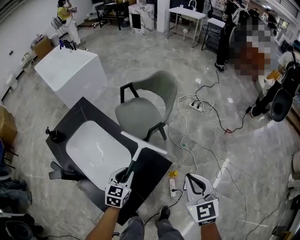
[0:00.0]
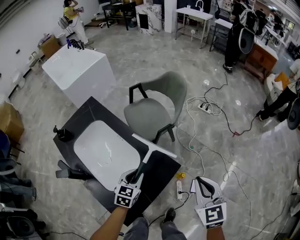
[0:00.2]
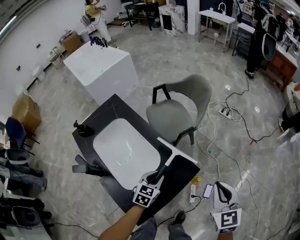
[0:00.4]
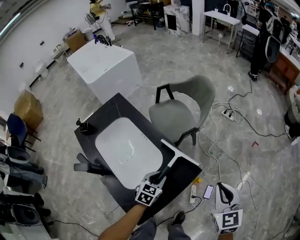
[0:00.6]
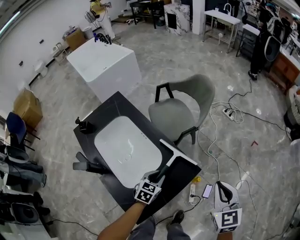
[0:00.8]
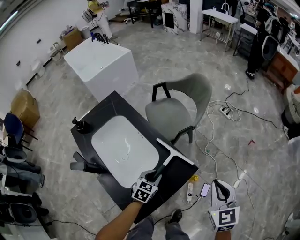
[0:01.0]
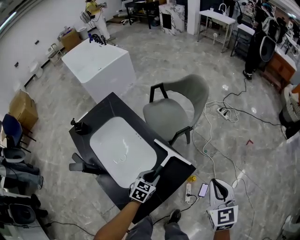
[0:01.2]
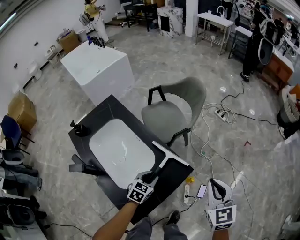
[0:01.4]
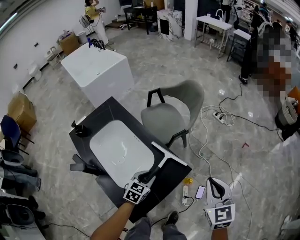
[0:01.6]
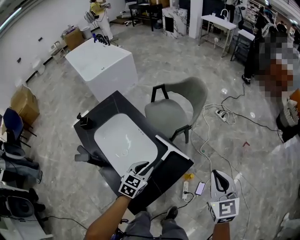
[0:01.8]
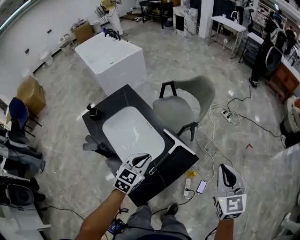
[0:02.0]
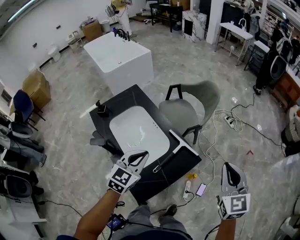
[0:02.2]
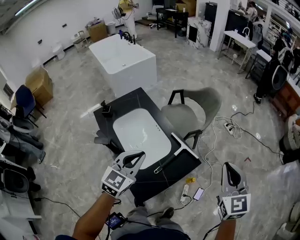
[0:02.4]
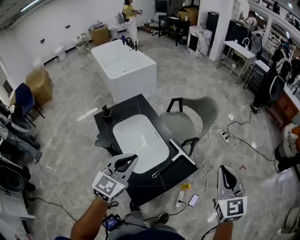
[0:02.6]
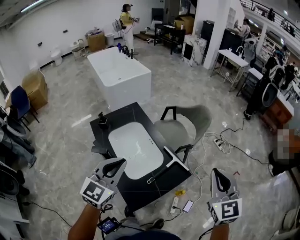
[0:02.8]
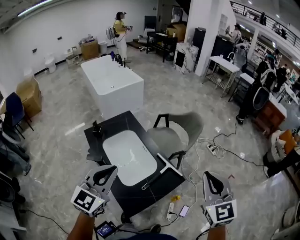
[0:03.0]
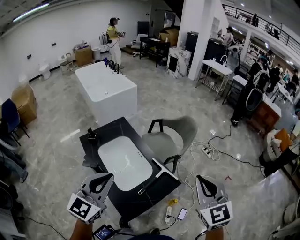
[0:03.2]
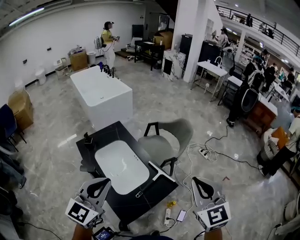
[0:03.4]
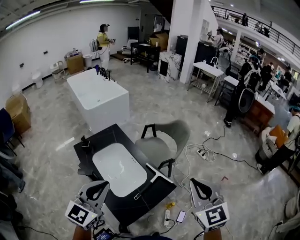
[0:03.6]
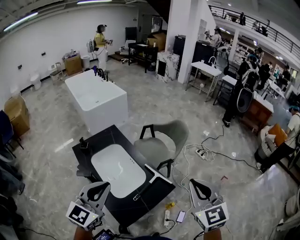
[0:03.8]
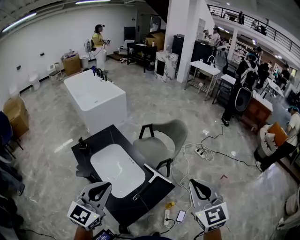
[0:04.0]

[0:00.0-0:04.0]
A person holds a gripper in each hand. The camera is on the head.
1.4 to 2.6 s: The right gripper shifts approximately 20 cm upward. The left gripper moves upward, approximately 35 cm, swivels approximately 30 degrees, and closes up.
2.6 to 4.0 s: Both grippers move upward, roughly 10 cm.

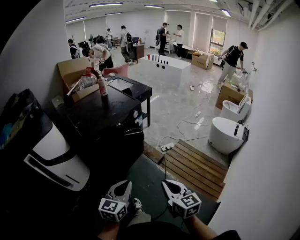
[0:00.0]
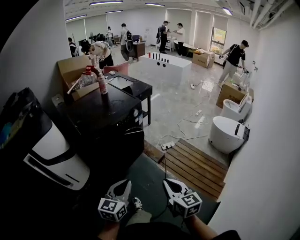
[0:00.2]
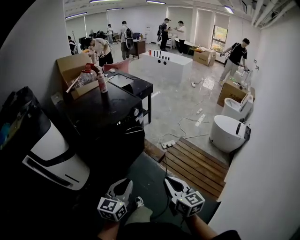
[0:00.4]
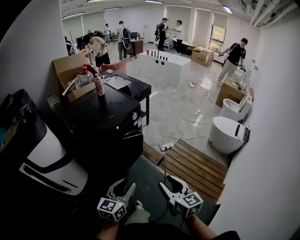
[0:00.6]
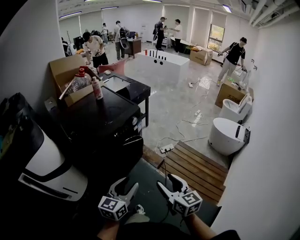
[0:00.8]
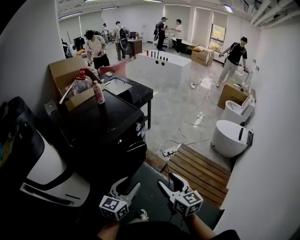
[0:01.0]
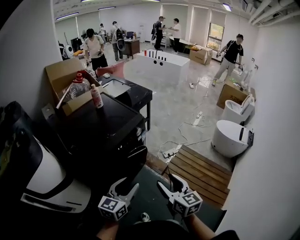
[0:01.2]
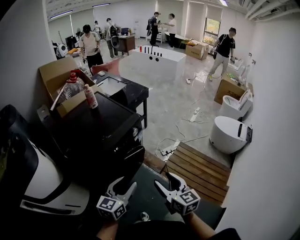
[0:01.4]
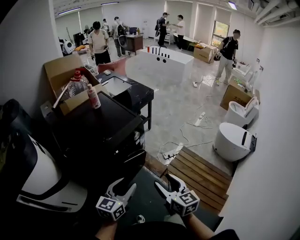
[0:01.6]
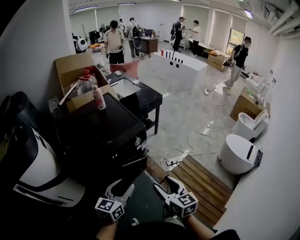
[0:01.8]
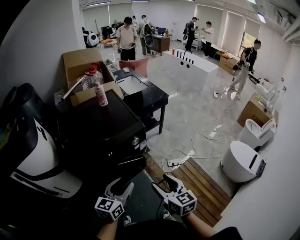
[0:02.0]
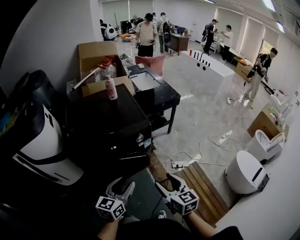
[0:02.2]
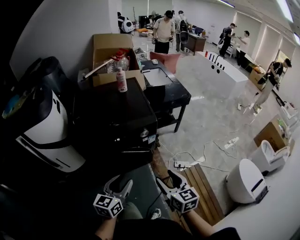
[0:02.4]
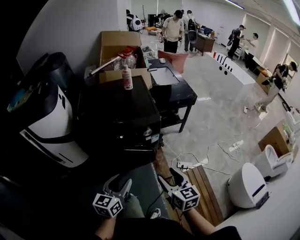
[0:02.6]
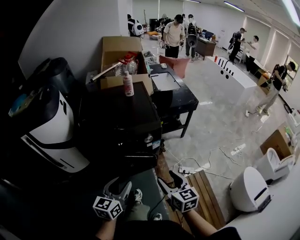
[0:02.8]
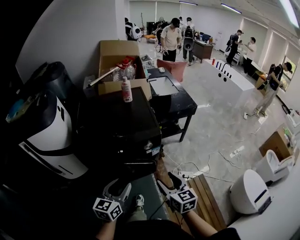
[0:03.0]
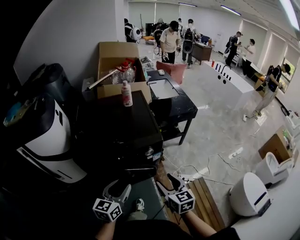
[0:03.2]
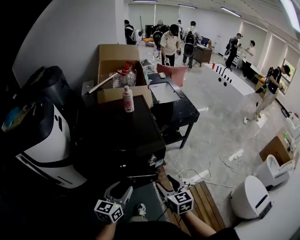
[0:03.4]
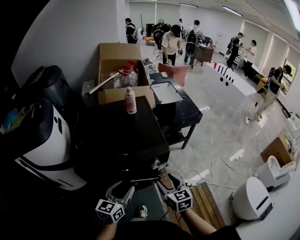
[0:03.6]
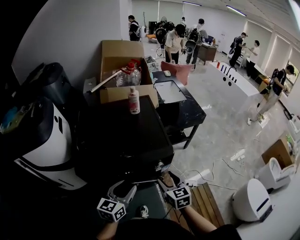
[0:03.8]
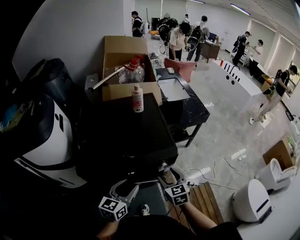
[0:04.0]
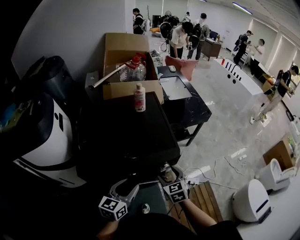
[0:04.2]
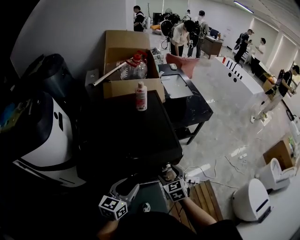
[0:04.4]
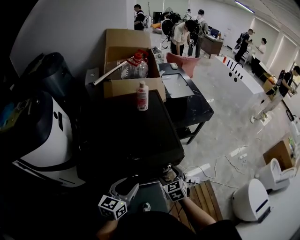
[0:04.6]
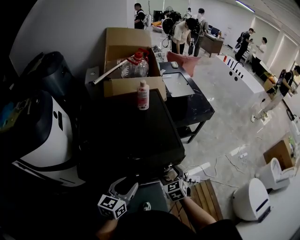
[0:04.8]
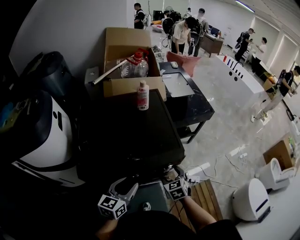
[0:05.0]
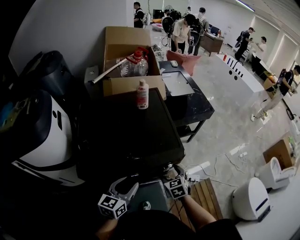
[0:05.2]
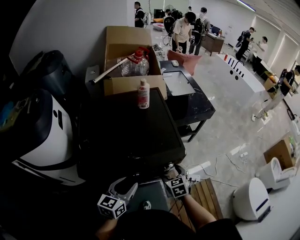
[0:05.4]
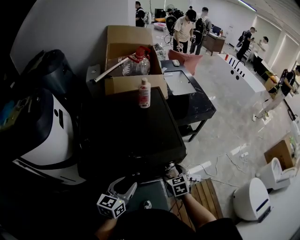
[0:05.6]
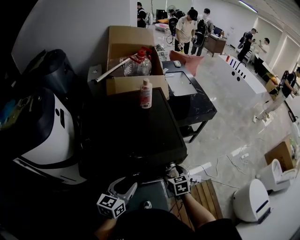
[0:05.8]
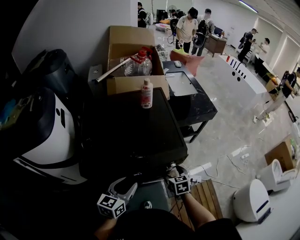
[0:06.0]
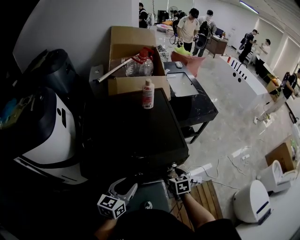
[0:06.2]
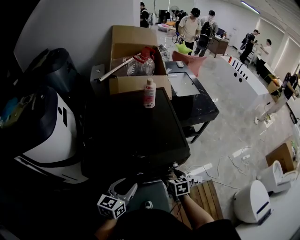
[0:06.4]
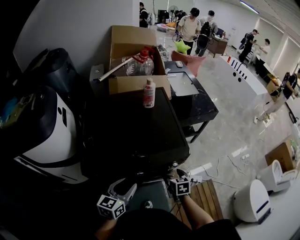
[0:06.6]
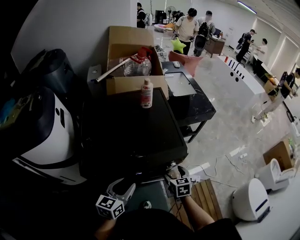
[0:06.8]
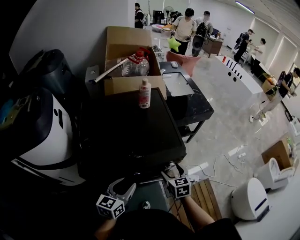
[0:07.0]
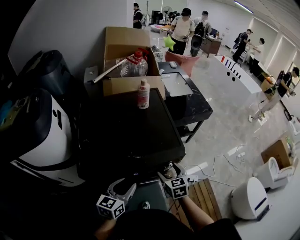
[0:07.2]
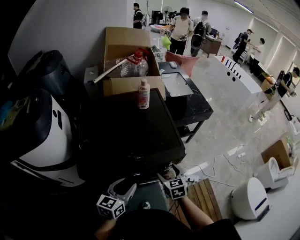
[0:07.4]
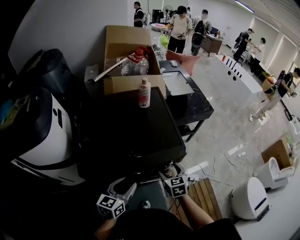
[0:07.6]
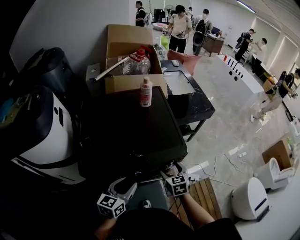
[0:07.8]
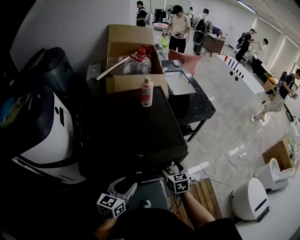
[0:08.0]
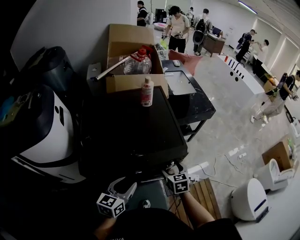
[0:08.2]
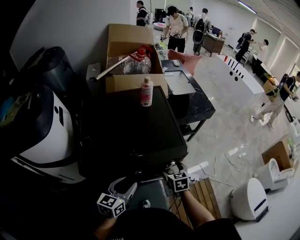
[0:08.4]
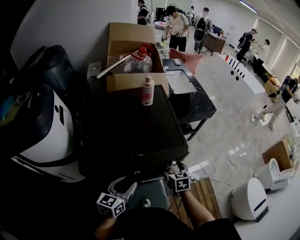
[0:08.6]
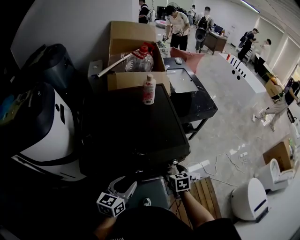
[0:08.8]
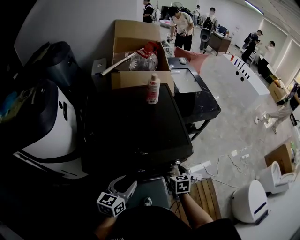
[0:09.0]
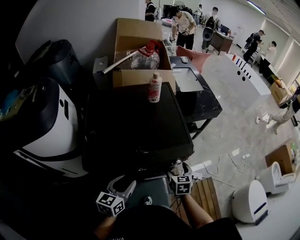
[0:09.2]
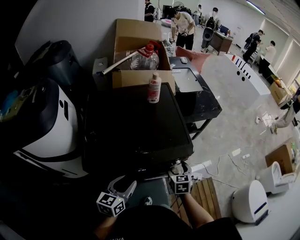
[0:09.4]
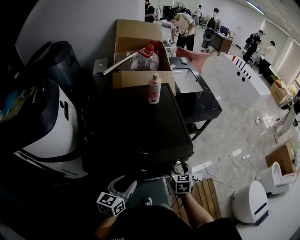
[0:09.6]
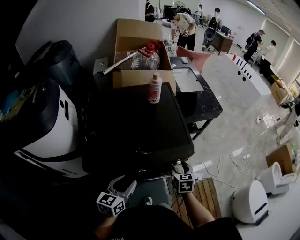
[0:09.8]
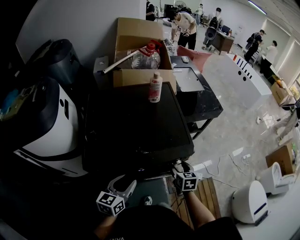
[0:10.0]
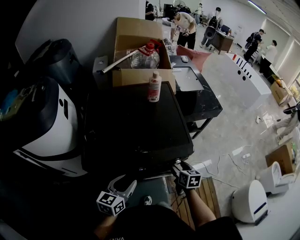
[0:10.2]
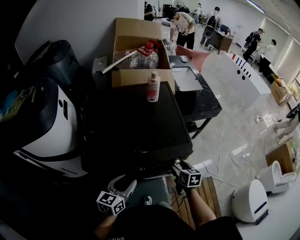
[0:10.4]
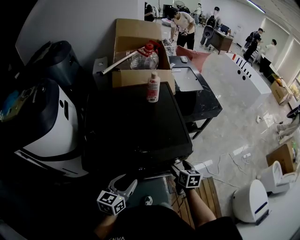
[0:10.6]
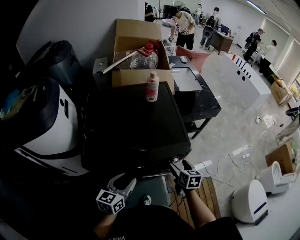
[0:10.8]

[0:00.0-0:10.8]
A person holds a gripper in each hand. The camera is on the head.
0.0 to 1.6 s: Both grippers travel together forward, roughly 30 cm. The right gripper opens its fingers. Meanwhile the left gripper opens its fingers.
1.6 to 3.0 s: The left gripper ends up about 10 cm from where it was, and swivels approximately 40 degrees. Meanwhile the right gripper moves approximately 20 cm, and turns by approximately 30 degrees.
3.0 to 4.6 s: The right gripper heads forward, downward and to the left, covering about 30 cm, and changes its angle by approximately 30 degrees. Meanwhile the left gripper goes about 20 cm forward.
4.6 to 6.2 s: The right gripper moves downward, some 5 cm, and rotates about 20 degrees.
6.2 to 7.8 s: The right gripper is displaced upward by about 5 cm.
7.8 to 9.2 s: There are only small adjustments of the grippers.
9.2 to 10.8 s: The grippers make only small movements.

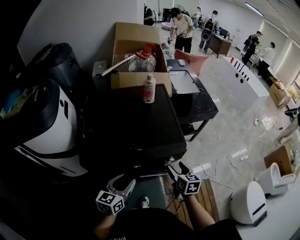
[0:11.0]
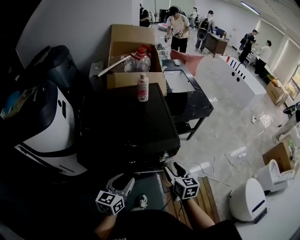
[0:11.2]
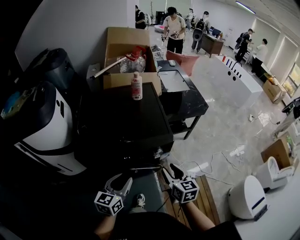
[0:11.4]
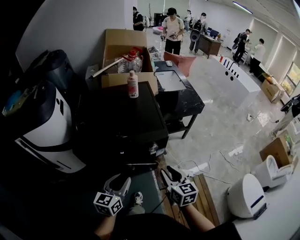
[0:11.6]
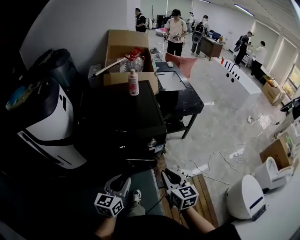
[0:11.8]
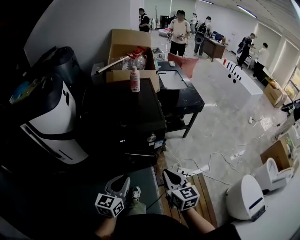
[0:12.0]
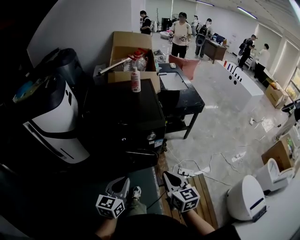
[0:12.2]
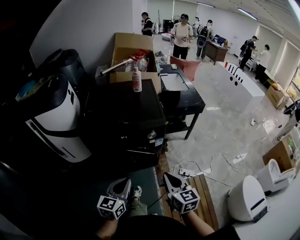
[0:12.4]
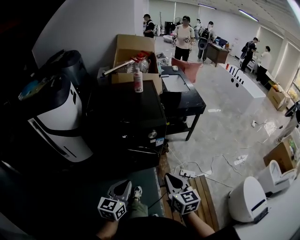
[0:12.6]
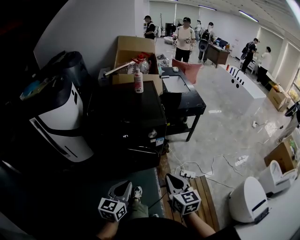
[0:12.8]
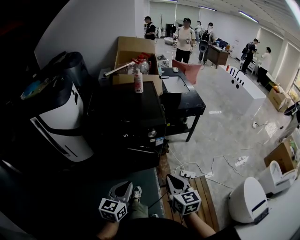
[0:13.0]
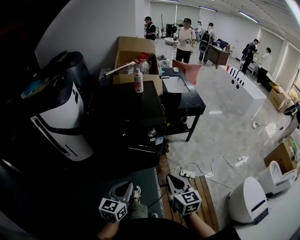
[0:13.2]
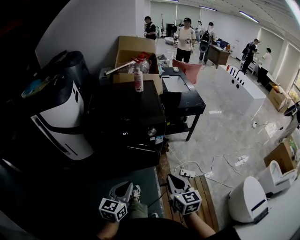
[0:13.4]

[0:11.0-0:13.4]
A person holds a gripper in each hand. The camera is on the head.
11.0 to 12.2 s: The right gripper goes some 30 cm backward and upward, and closes its fingers; the left gripper shifts approximately 25 cm backward and to the right, and closes its fingers.
12.2 to 13.4 s: Both grippers move backward, approximately 5 cm.

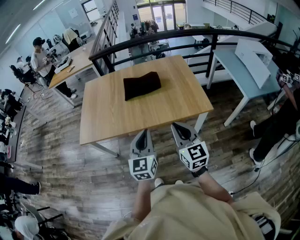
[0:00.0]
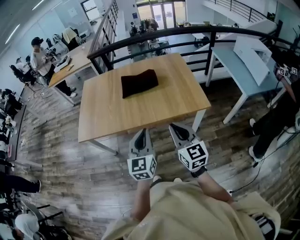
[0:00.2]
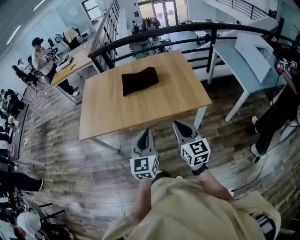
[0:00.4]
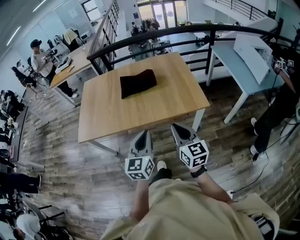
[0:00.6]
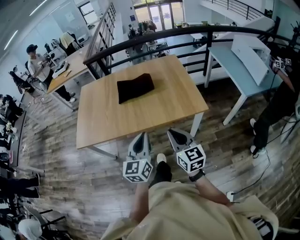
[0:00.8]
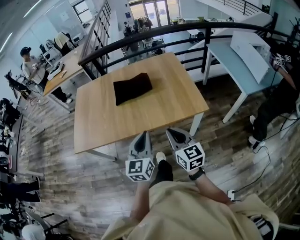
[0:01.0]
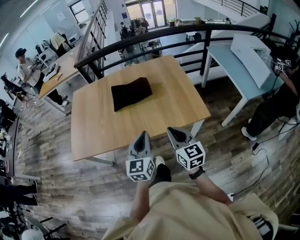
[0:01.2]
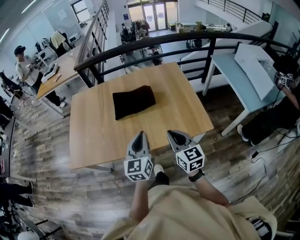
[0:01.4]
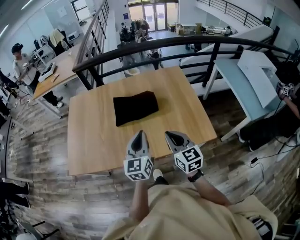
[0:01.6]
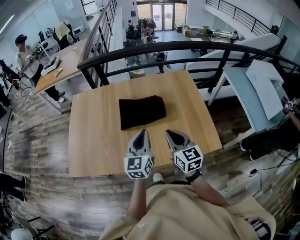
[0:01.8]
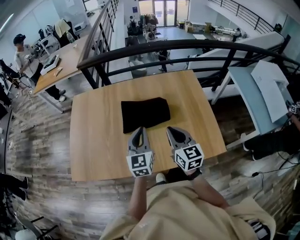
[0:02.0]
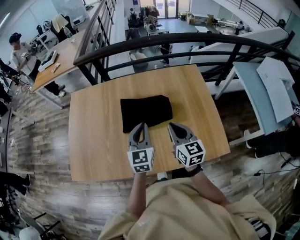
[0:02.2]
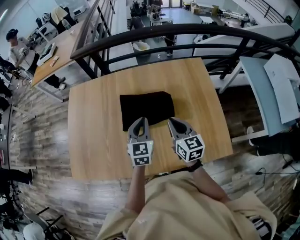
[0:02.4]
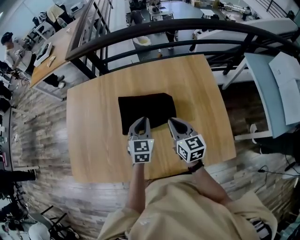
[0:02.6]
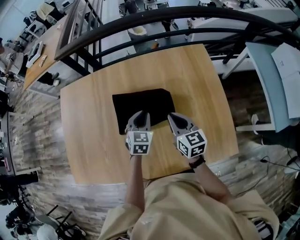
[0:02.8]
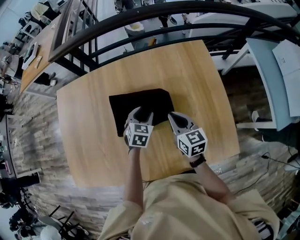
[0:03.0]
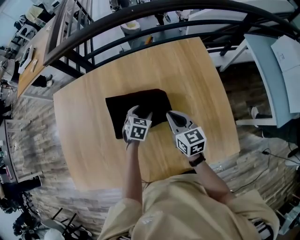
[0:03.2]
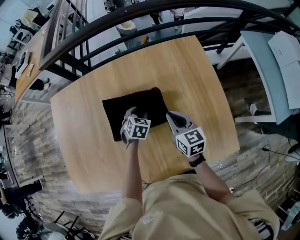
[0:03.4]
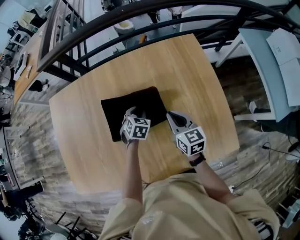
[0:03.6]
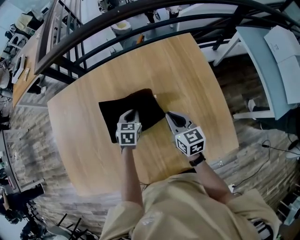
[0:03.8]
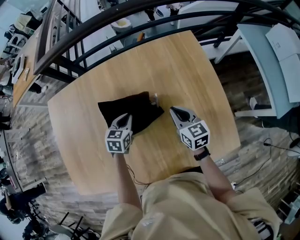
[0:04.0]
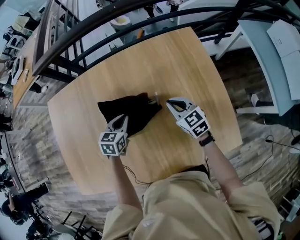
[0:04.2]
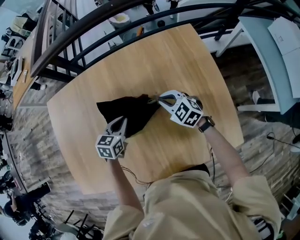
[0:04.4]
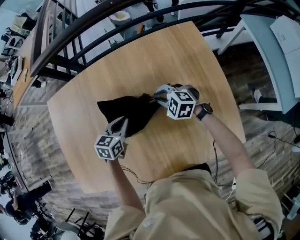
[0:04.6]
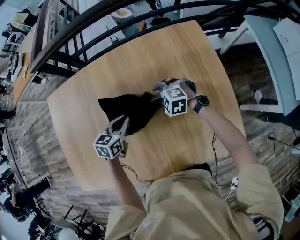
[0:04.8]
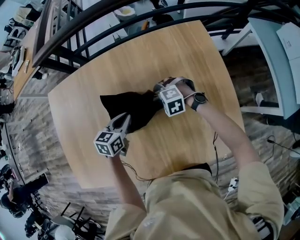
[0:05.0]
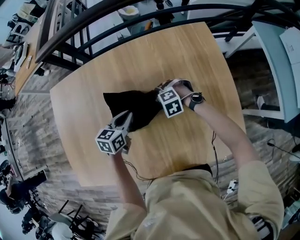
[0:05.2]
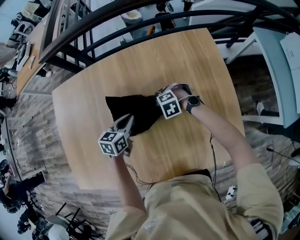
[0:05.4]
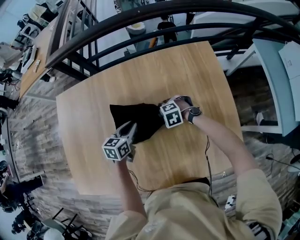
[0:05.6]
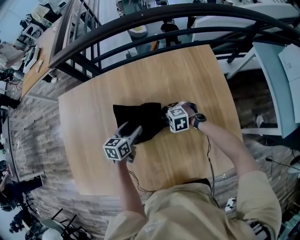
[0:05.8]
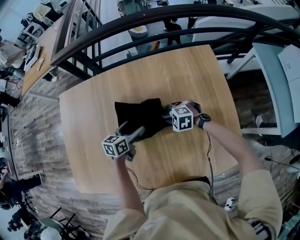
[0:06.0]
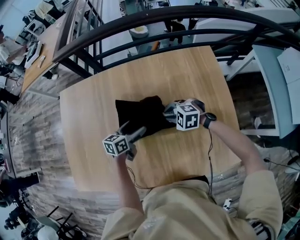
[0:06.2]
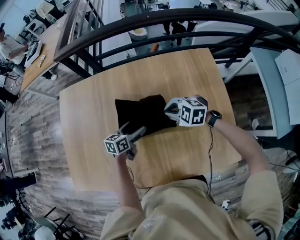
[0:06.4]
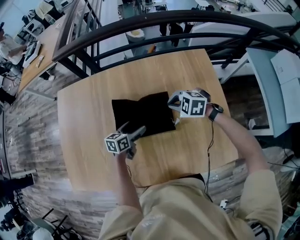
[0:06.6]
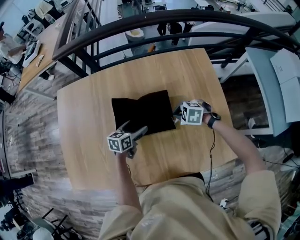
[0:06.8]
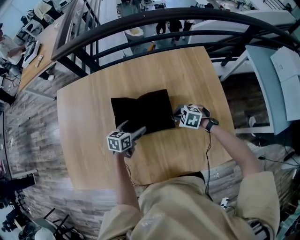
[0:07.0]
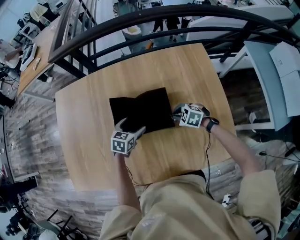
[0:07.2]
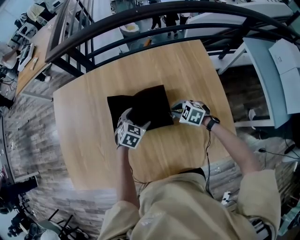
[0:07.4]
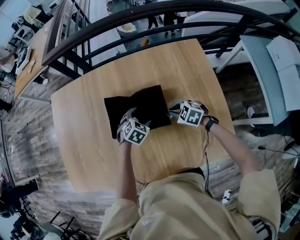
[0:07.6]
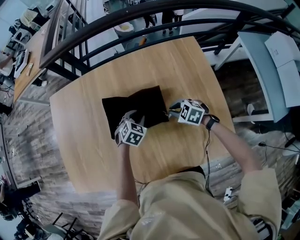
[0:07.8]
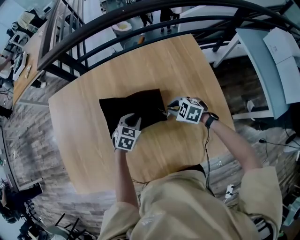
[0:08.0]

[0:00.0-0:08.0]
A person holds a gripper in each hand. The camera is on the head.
0.0 to 1.6 s: The grippers both shift forward by some 30 cm.
1.6 to 3.2 s: Both grippers move forward and downward, some 40 cm. The left gripper points its fingers approximately 50 degrees further downward, and opens up.
3.2 to 4.8 s: The left gripper moves to the left, approximately 5 cm, turns by about 20 degrees, and closes; the right gripper moves downward and forward, roughly 15 cm, rolls counterclockwise, seen from behind, by some 60 degrees, and opens up.
4.8 to 6.4 s: The left gripper opens up. The right gripper is displaced upward by approximately 10 cm, and closes its fingers.
6.4 to 8.0 s: The right gripper shifts about 10 cm downward and to the right, and swivels roughly 20 degrees. Meanwhile the left gripper is displaced to the right by some 5 cm, rolls clockwise, seen from behind, by some 40 degrees, and closes up.
